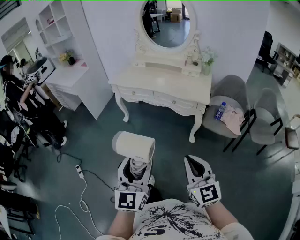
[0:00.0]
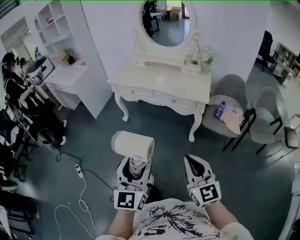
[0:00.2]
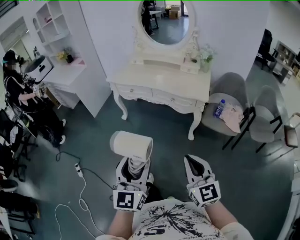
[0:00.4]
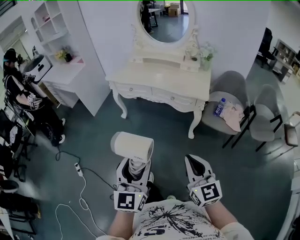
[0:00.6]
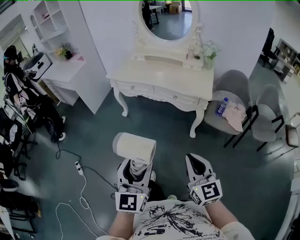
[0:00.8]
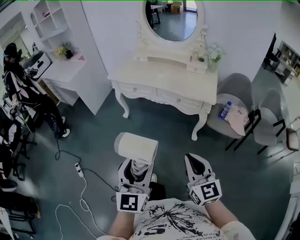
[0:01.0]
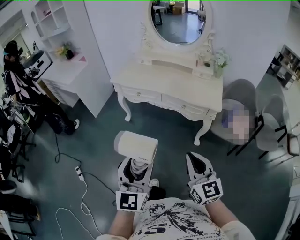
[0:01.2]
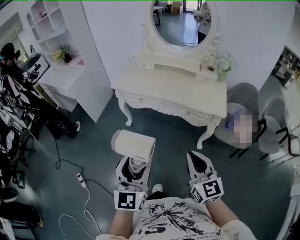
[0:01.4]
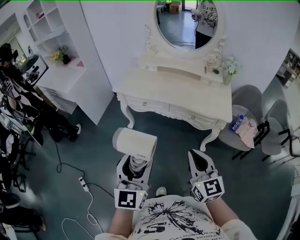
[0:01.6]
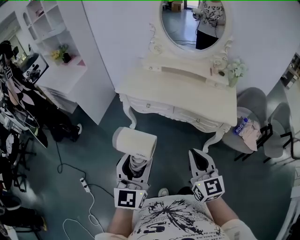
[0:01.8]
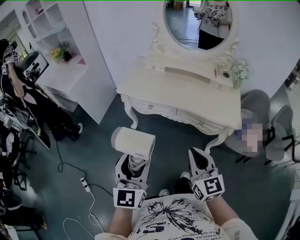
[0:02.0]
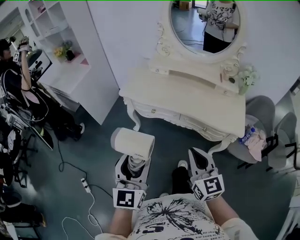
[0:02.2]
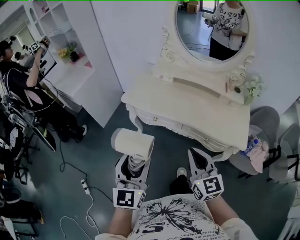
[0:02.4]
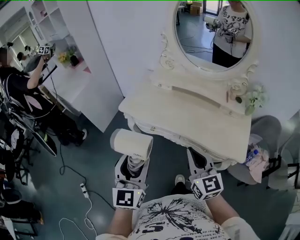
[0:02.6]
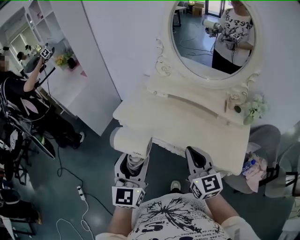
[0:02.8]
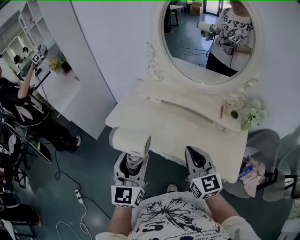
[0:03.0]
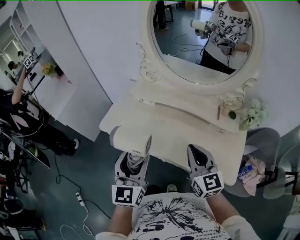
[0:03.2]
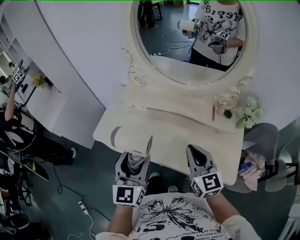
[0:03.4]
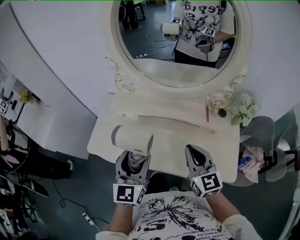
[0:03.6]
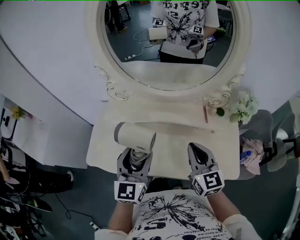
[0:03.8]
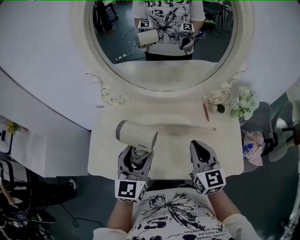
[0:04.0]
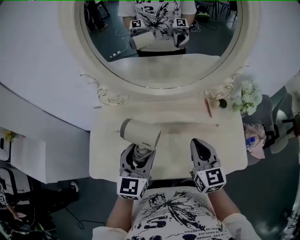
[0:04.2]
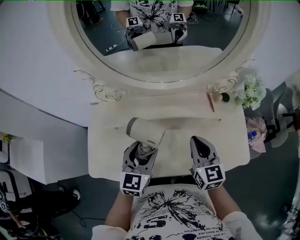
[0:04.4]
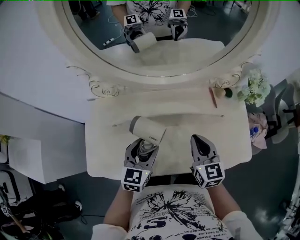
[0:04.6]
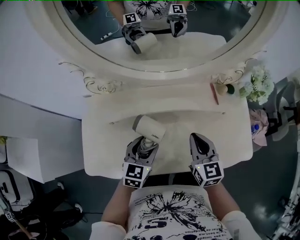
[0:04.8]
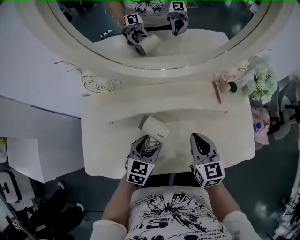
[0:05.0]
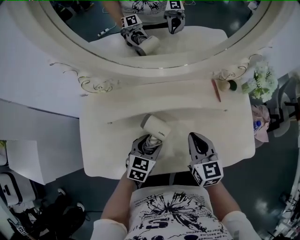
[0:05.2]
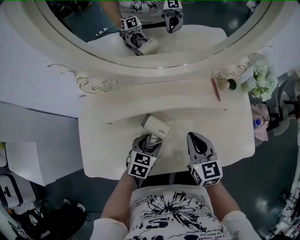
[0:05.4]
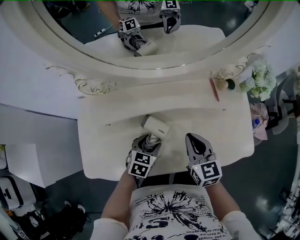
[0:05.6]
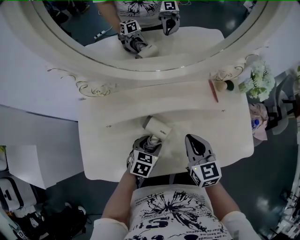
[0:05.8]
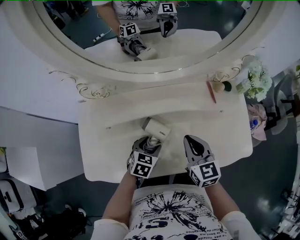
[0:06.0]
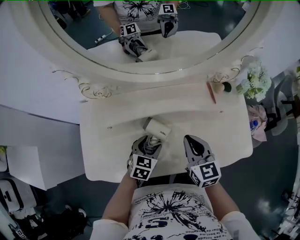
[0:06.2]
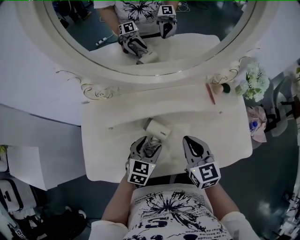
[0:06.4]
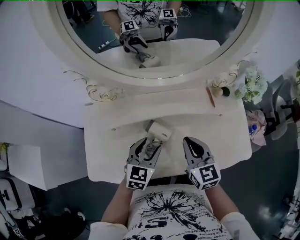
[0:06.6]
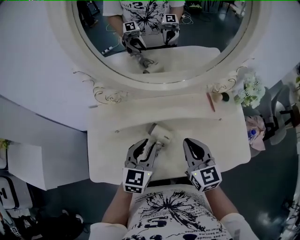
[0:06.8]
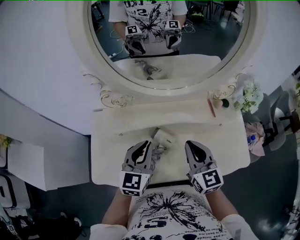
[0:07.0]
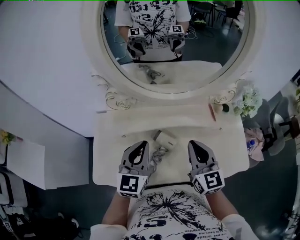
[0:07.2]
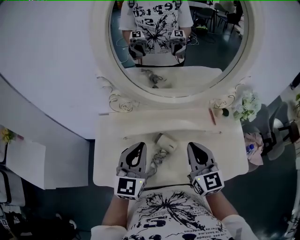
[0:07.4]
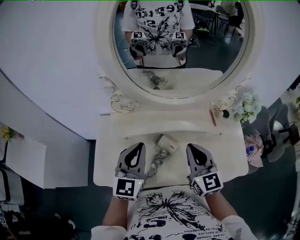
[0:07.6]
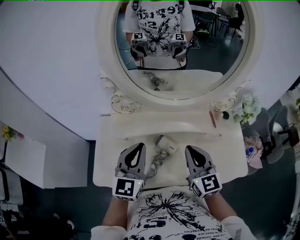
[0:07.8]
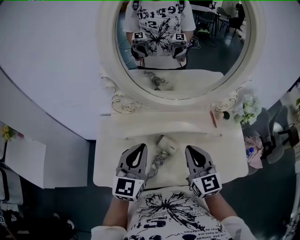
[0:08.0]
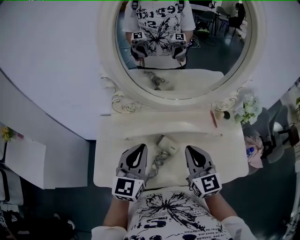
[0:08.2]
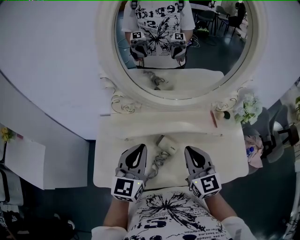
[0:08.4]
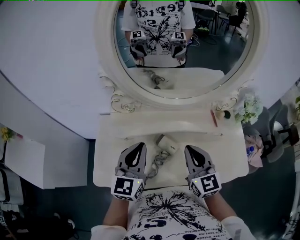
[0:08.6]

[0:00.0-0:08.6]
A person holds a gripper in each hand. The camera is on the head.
0.0 to 1.4 s: Both grippers move forward and to the left, about 20 cm.
1.4 to 2.8 s: The grippers both shift forward by approximately 40 cm.
2.8 to 4.4 s: The left gripper ends up roughly 35 cm from where it was, and turns by approximately 40 degrees. Meanwhile the right gripper ends up some 25 cm from where it was, and rotates roughly 40 degrees.
4.4 to 5.8 s: The right gripper heads downward, covering some 5 cm. The left gripper is displaced downward by about 20 cm, and angles its fingers downward, by roughly 30 degrees.
5.8 to 7.2 s: The left gripper heads upward, covering approximately 25 cm, tips its fingers upward by some 40 degrees, and closes up; the right gripper travels upward by roughly 15 cm.
7.2 to 8.6 s: The grippers move only a little.

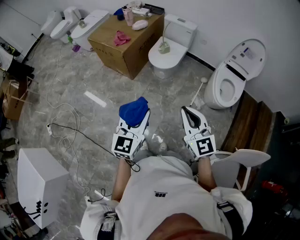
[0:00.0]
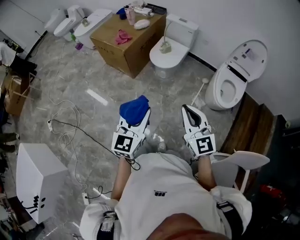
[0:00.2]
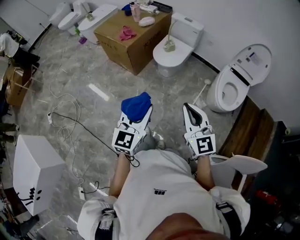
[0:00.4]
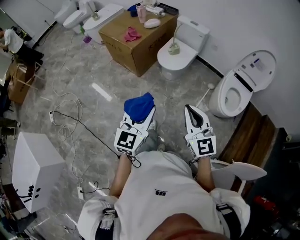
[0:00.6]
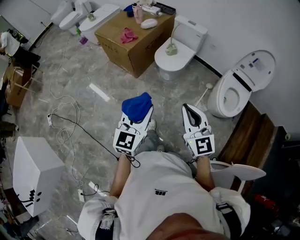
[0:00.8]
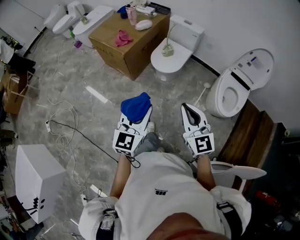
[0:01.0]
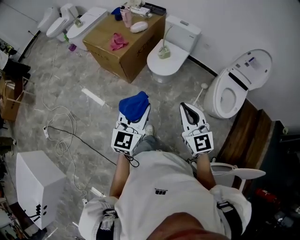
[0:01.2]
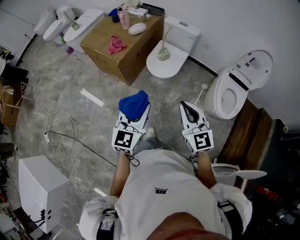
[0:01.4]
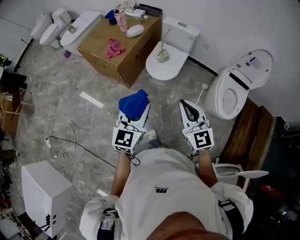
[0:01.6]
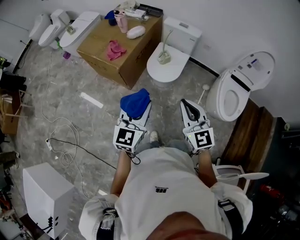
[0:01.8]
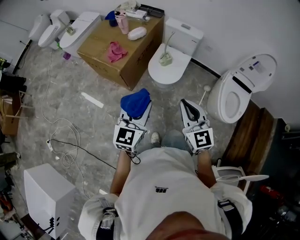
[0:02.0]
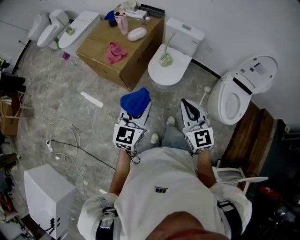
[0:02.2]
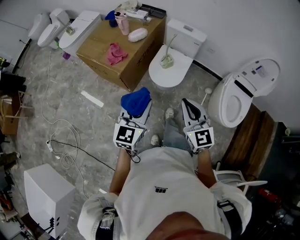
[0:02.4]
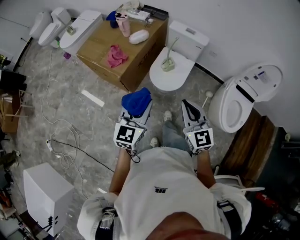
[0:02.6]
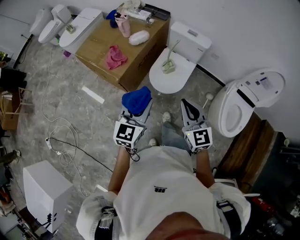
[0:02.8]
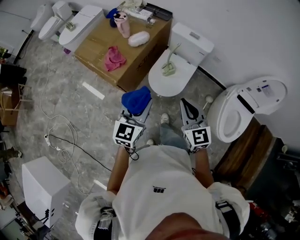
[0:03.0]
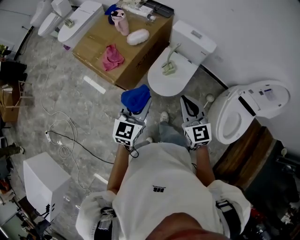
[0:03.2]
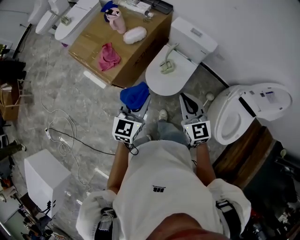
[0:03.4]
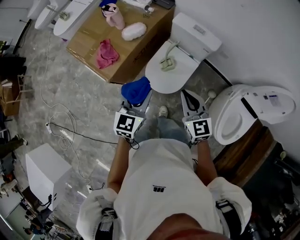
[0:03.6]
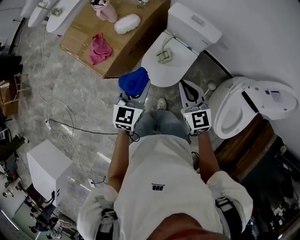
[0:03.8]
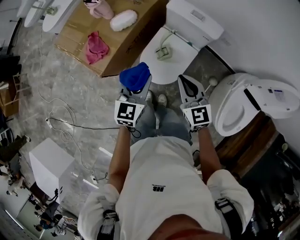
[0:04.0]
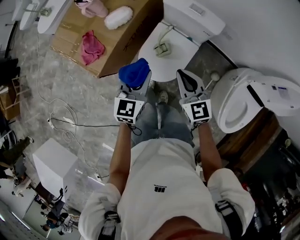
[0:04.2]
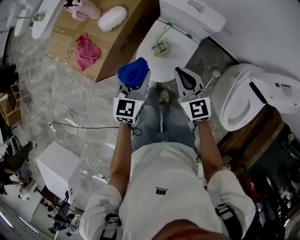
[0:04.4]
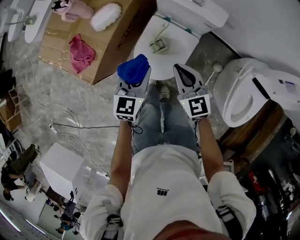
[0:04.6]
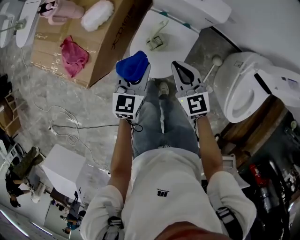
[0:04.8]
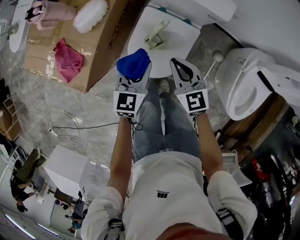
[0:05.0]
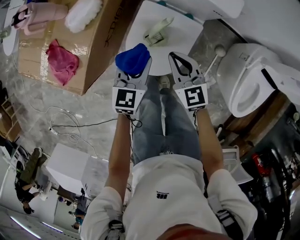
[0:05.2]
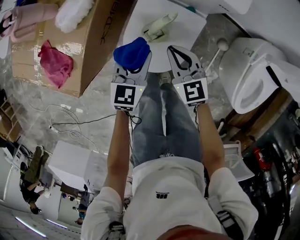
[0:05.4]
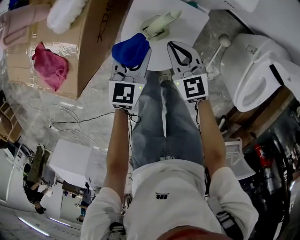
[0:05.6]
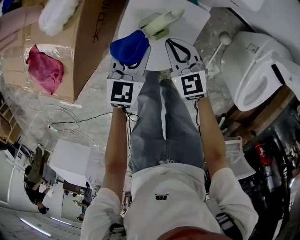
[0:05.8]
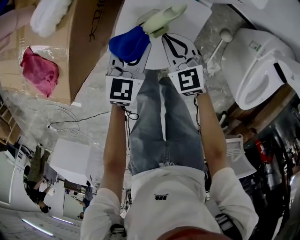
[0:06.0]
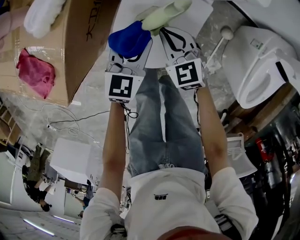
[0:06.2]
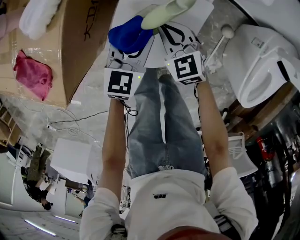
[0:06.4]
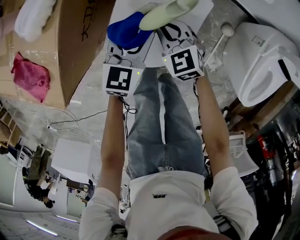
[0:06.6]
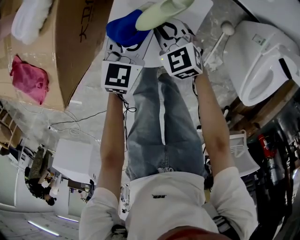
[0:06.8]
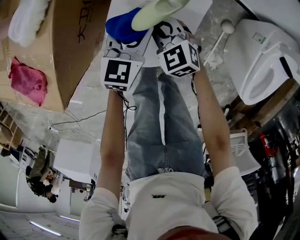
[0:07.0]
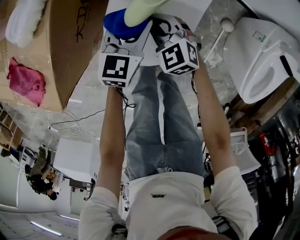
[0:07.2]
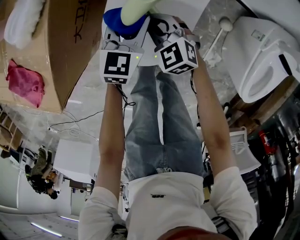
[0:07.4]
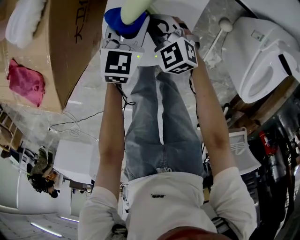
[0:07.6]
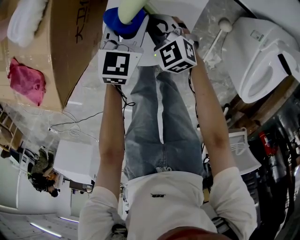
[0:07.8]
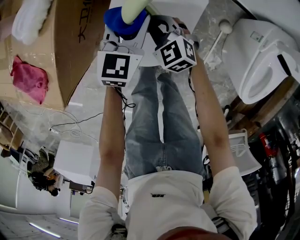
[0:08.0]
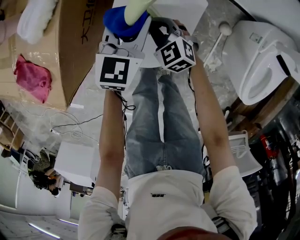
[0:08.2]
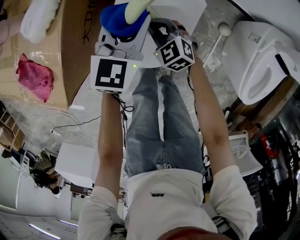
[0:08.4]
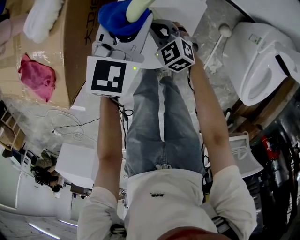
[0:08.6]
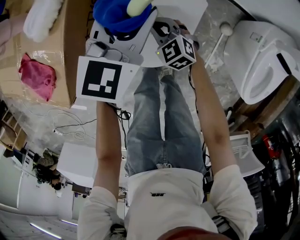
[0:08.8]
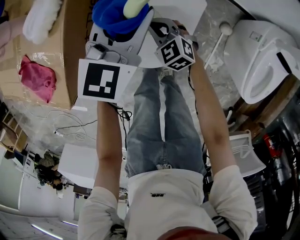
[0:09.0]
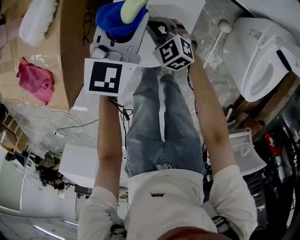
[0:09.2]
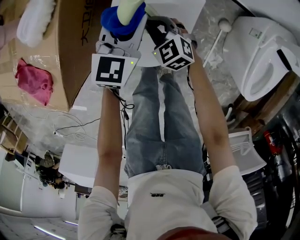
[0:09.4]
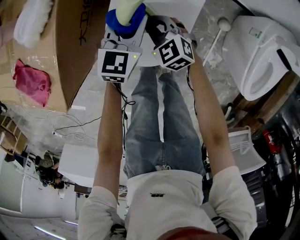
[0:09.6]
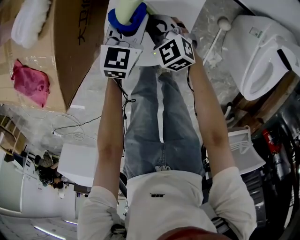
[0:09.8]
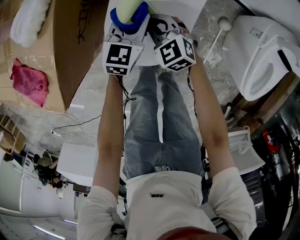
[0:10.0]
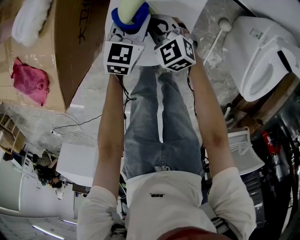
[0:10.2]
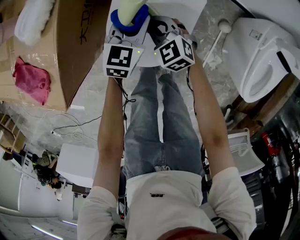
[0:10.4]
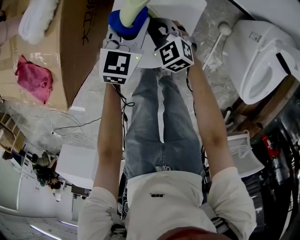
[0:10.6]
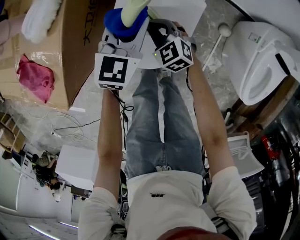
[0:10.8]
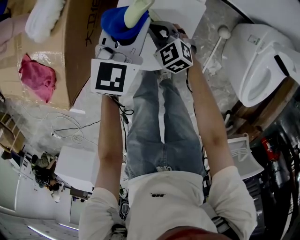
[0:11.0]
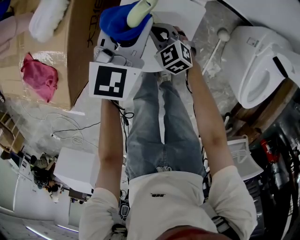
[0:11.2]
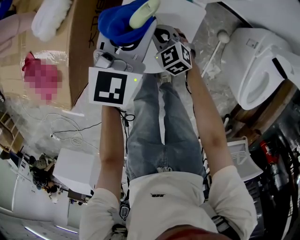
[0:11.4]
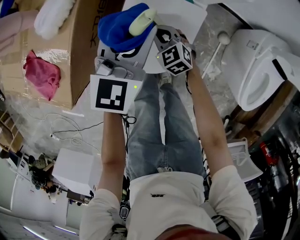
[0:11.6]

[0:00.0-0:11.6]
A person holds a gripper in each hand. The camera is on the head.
0.0 to 1.4 s: Both grippers travel together forward, approximately 20 cm.
1.4 to 2.8 s: The grippers both shift forward by approximately 25 cm.
2.8 to 4.4 s: The grippers both shift forward and downward by roughly 35 cm.
4.4 to 5.8 s: Both grippers move downward, some 25 cm.
5.8 to 7.2 s: Both grippers move downward, about 10 cm.
7.2 to 8.8 s: The left gripper travels upward by some 15 cm.
8.8 to 10.2 s: The left gripper moves downward, roughly 15 cm.
10.2 to 11.6 s: The left gripper moves upward, about 20 cm.

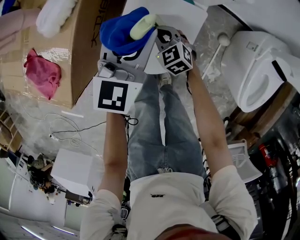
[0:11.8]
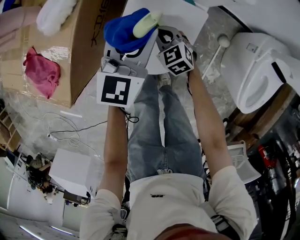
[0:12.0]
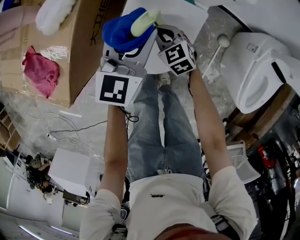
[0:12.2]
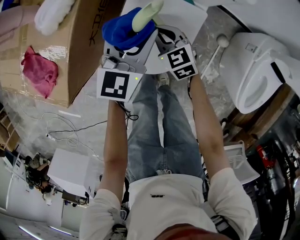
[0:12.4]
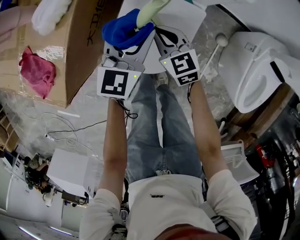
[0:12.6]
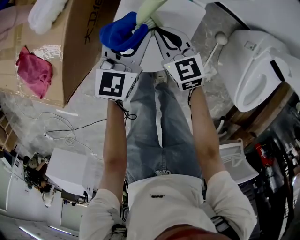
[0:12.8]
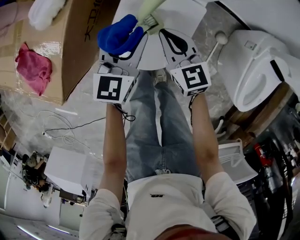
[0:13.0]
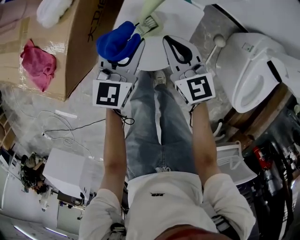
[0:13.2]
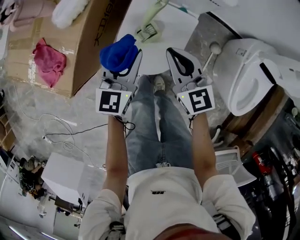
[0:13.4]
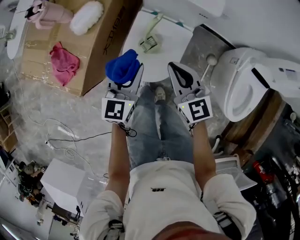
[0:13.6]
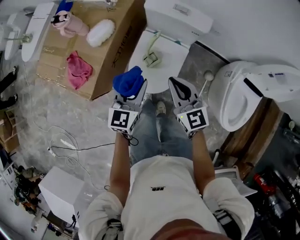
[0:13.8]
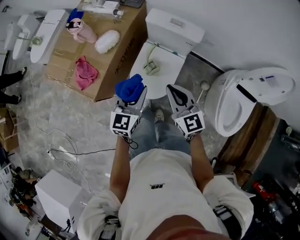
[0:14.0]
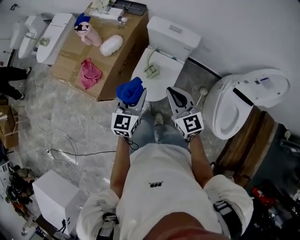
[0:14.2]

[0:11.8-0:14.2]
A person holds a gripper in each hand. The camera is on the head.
11.8 to 13.0 s: The left gripper heads downward, covering roughly 5 cm. Meanwhile the right gripper moves upward, approximately 10 cm, and turns by roughly 30 degrees.
13.0 to 14.2 s: The grippers both shift upward and backward by some 40 cm.

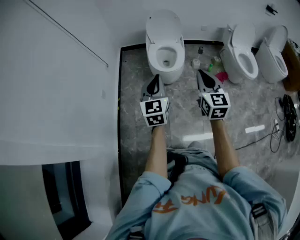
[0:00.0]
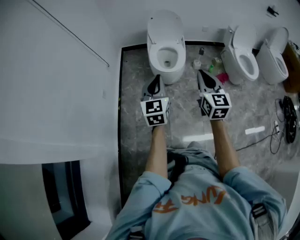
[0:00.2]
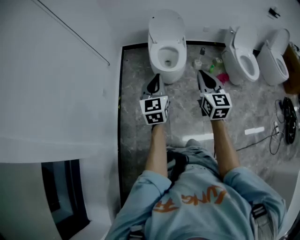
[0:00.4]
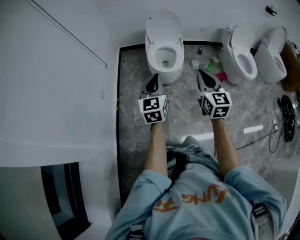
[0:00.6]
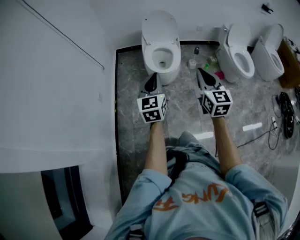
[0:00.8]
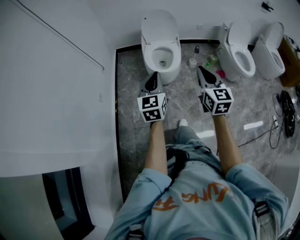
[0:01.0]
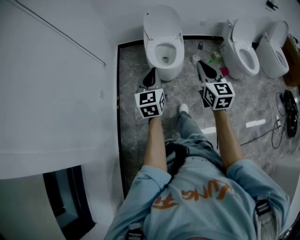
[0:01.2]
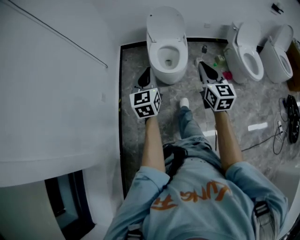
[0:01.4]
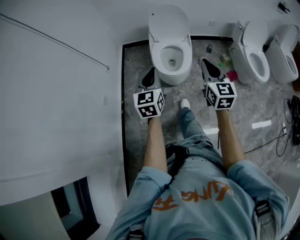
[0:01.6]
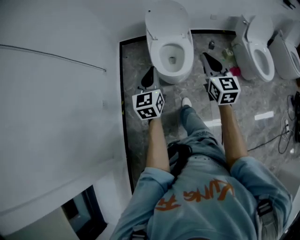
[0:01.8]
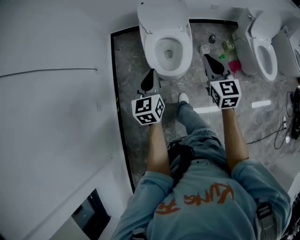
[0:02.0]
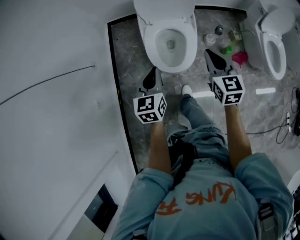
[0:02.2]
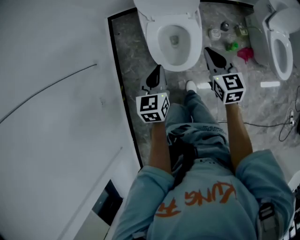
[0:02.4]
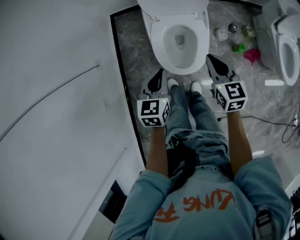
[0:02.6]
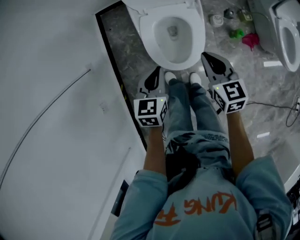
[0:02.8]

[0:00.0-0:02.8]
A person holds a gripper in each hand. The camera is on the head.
0.0 to 1.4 s: Both grippers move forward, about 10 cm.
1.4 to 2.8 s: The two grippers travel together, forward, approximately 40 cm. Both grippers move downward, approximately 25 cm. The left gripper points its fingers some 30 degrees further downward, while the right gripper turns by approximately 30 degrees.
